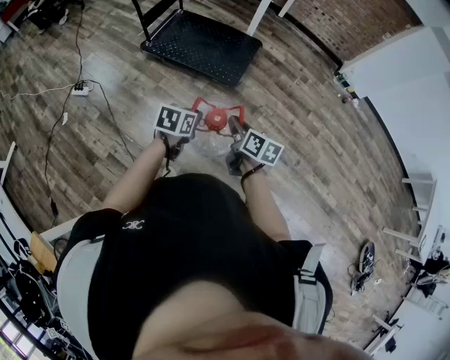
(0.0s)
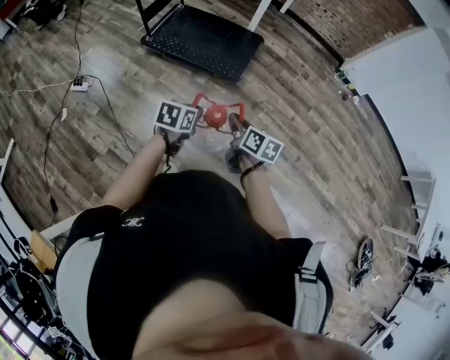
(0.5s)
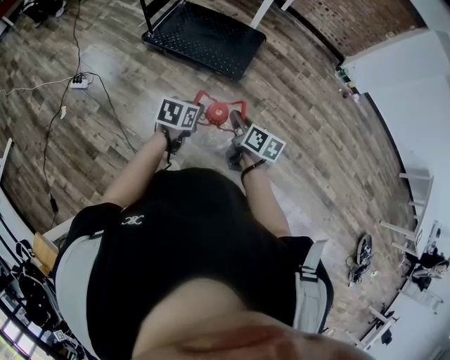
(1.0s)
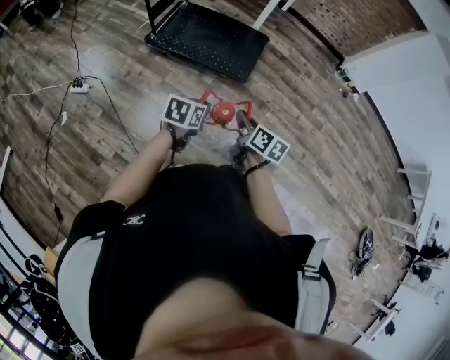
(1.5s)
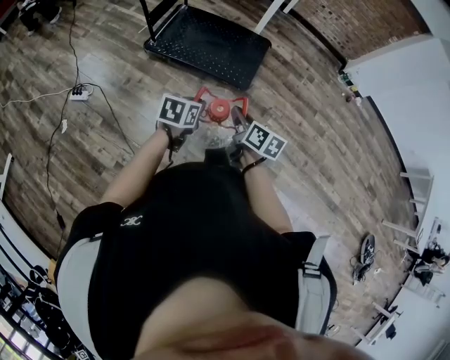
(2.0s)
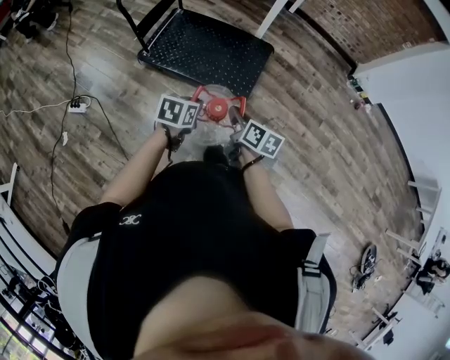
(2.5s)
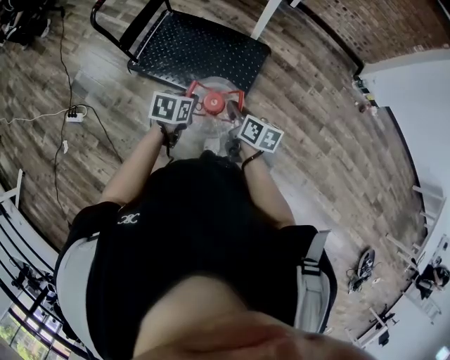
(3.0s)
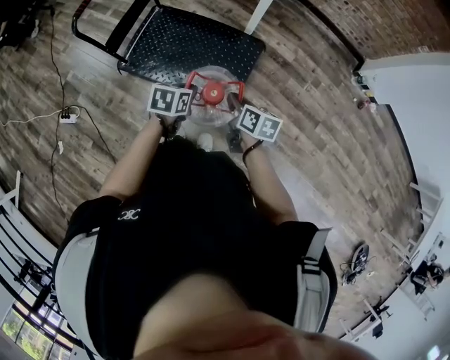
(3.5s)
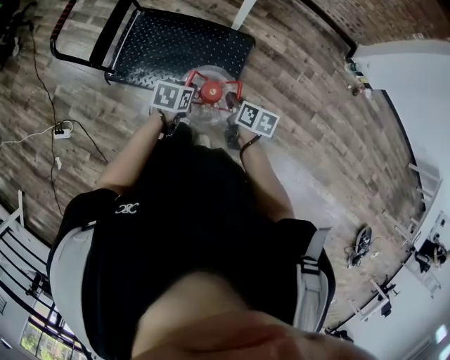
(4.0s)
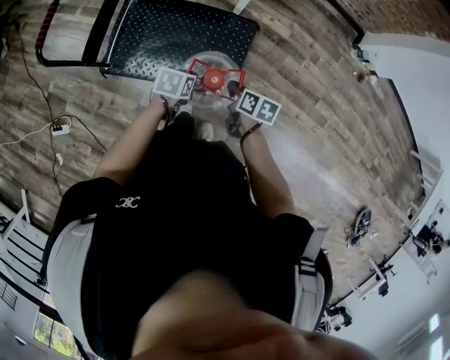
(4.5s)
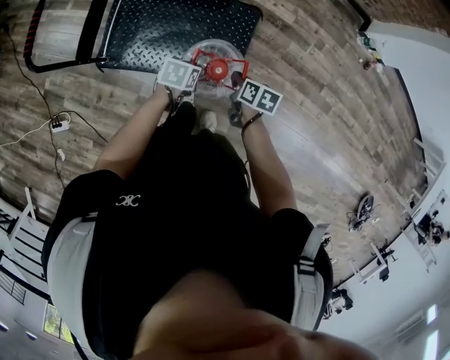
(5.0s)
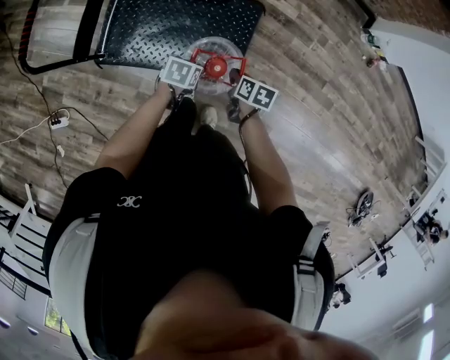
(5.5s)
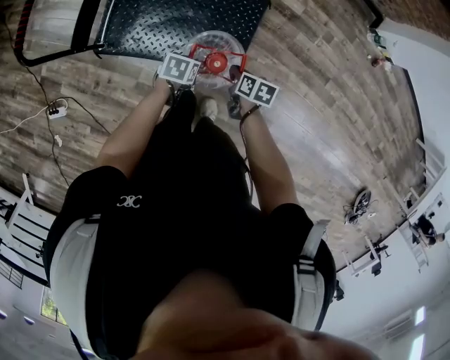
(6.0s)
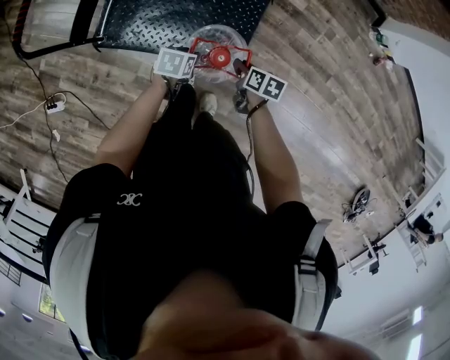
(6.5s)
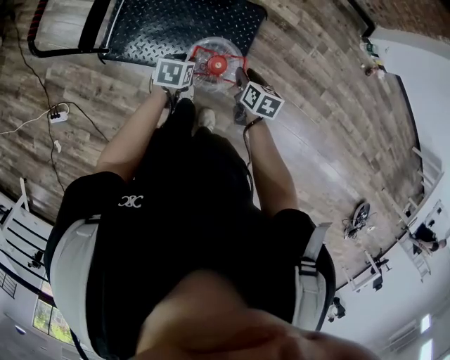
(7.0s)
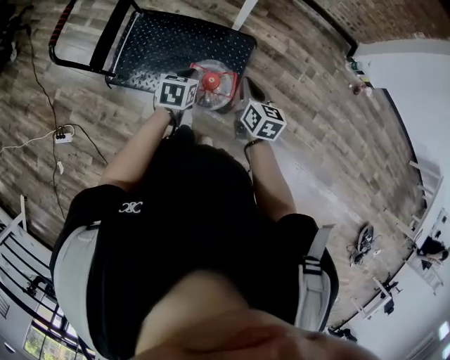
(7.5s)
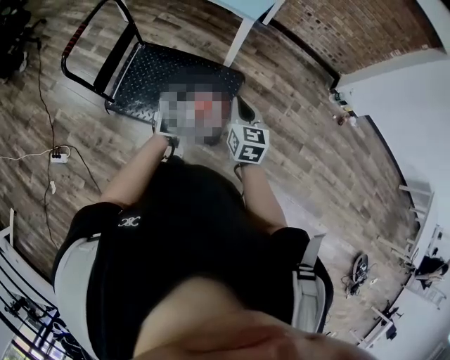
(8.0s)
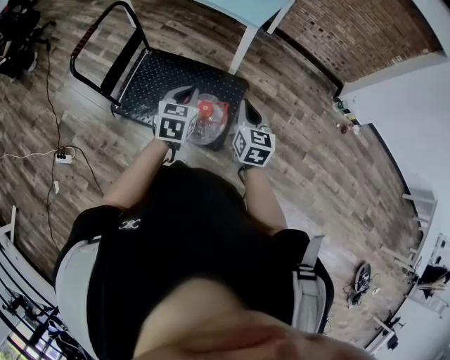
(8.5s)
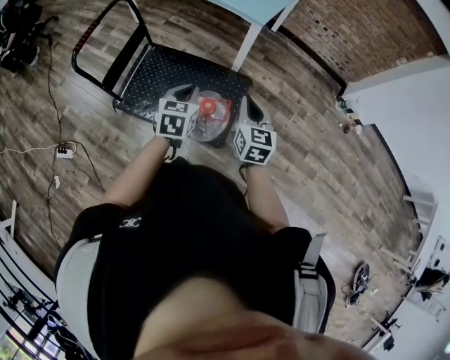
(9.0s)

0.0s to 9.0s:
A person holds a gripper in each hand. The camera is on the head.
0.0s to 2.0s: Both grippers travel together to the left and forward, some 15 cm.
2.0s to 4.5s: The pair of grippers is taken forward, some 50 cm. The left gripper rotates approximately 20 degrees. Meanwhile the right gripper turns by approximately 20 degrees.
4.5s to 7.0s: The right gripper goes downward and returns, about 10 cm each way, and opens up.
7.0s to 9.0s: The two grippers go approximately 25 cm upward. The left gripper changes its angle by approximately 40 degrees, and closes its fingers; the right gripper tips its fingers upward by approximately 30 degrees, and closes up.

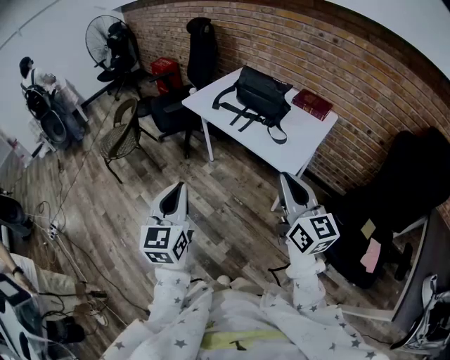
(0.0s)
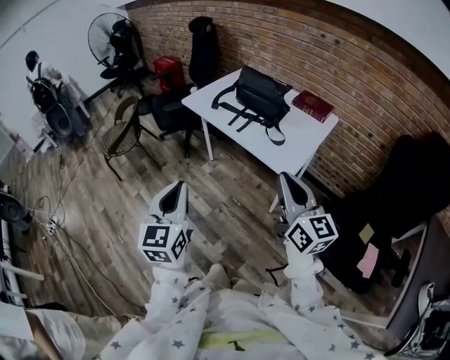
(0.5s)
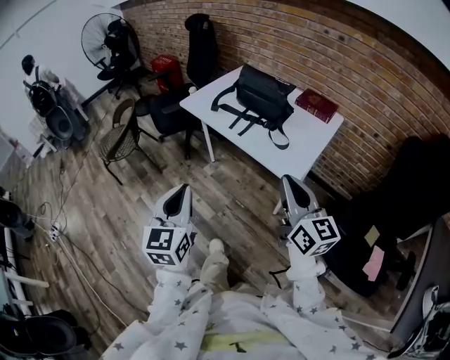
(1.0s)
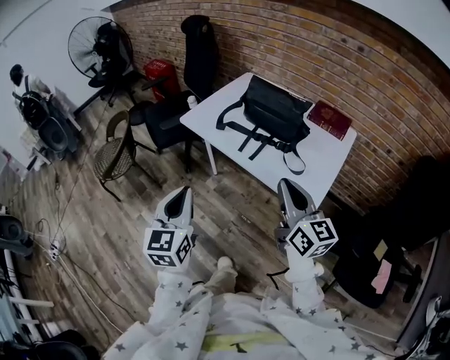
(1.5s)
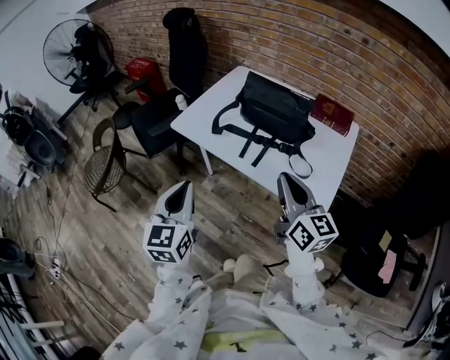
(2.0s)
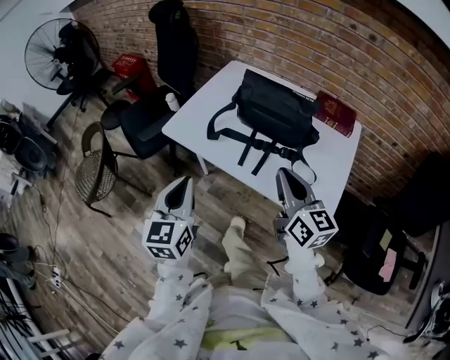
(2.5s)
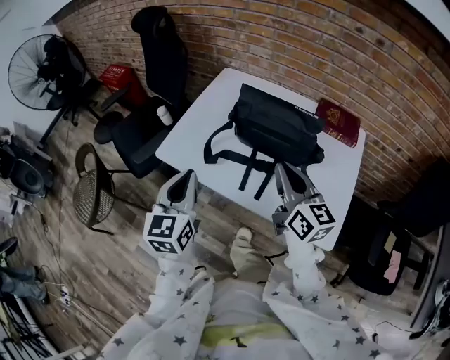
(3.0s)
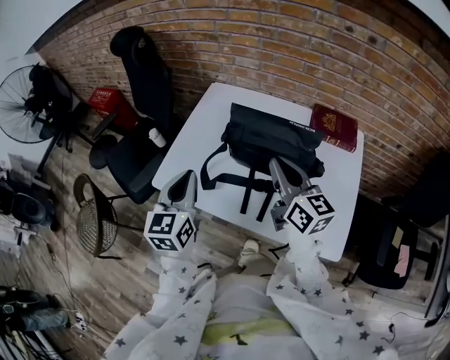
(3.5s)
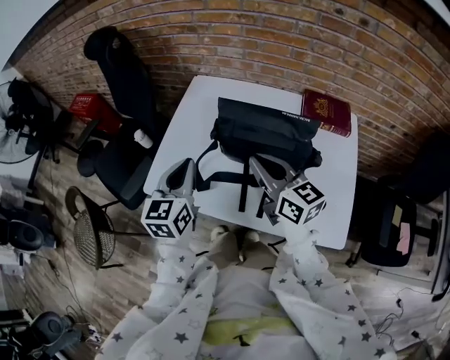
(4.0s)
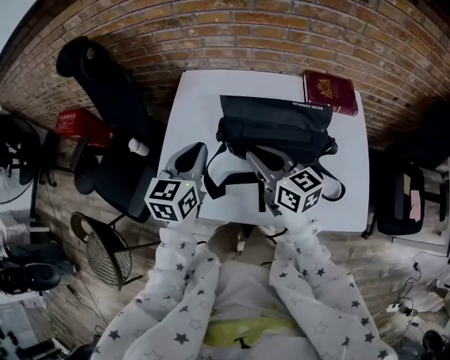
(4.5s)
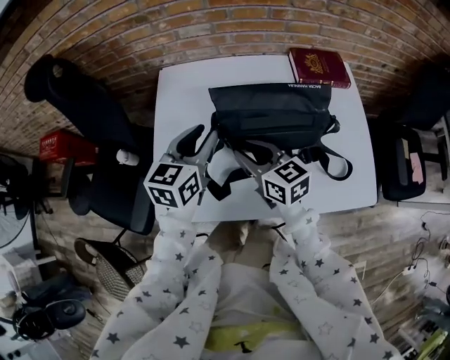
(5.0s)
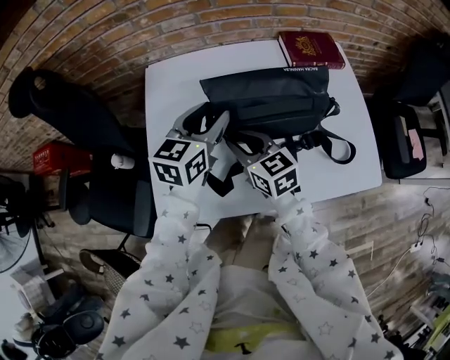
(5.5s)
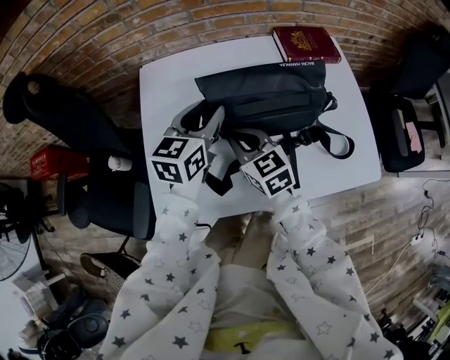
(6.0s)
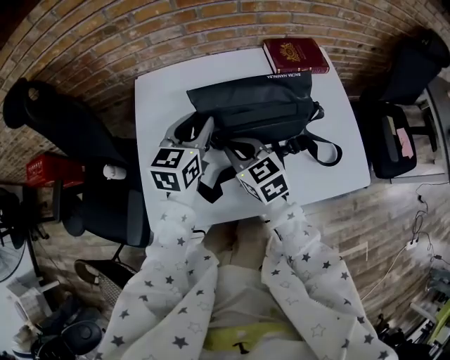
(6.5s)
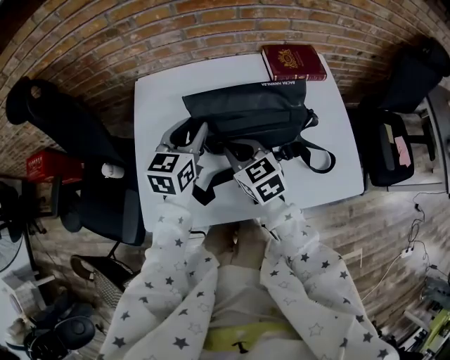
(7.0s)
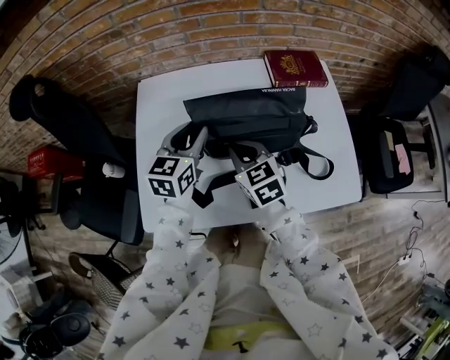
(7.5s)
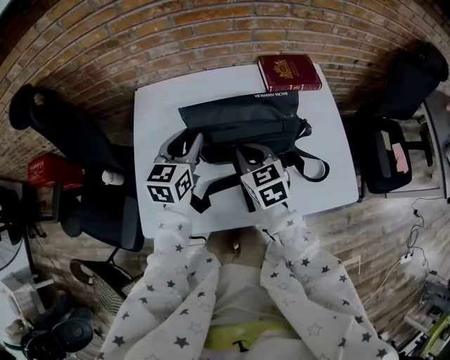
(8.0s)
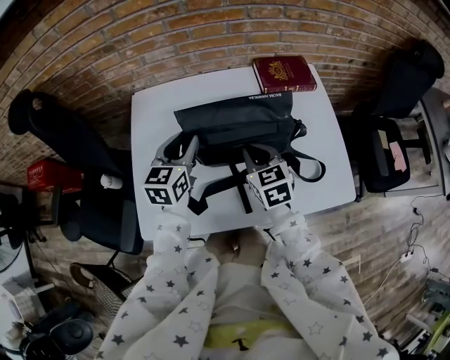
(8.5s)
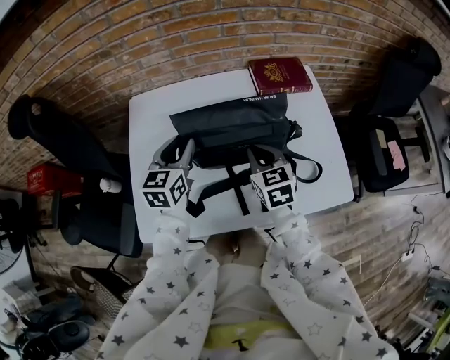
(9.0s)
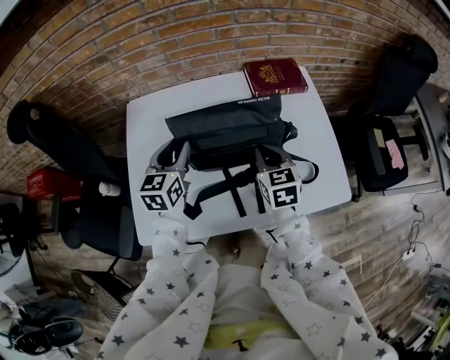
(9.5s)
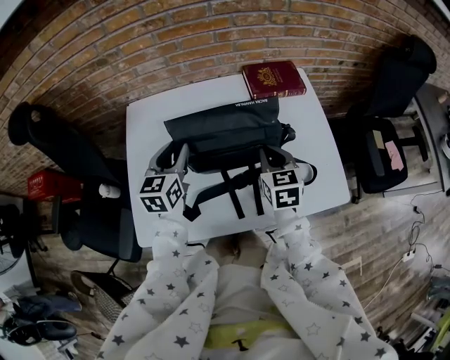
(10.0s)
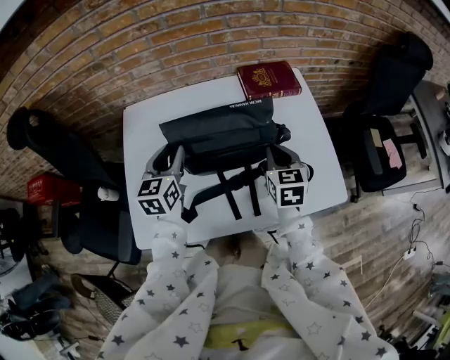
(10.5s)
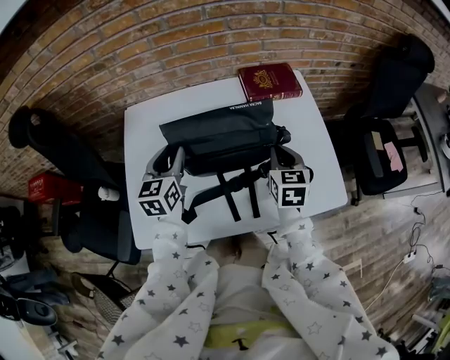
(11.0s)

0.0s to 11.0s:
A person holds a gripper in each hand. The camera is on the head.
0.0s to 2.0s: The two grippers go roughly 30 cm forward.
2.0s to 3.5s: Both grippers travel together forward, roughly 30 cm.
3.5s to 5.5s: The left gripper moves approximately 20 cm, swivels roughly 50 degrees, and opens; the right gripper is displaced downward by some 15 cm, changes its angle by approximately 30 degrees, and opens its fingers.
5.5s to 7.5s: The right gripper shifts some 5 cm to the right, and closes.
7.5s to 9.0s: The right gripper moves to the right, roughly 10 cm.
9.0s to 11.0s: The right gripper shifts roughly 10 cm to the right.

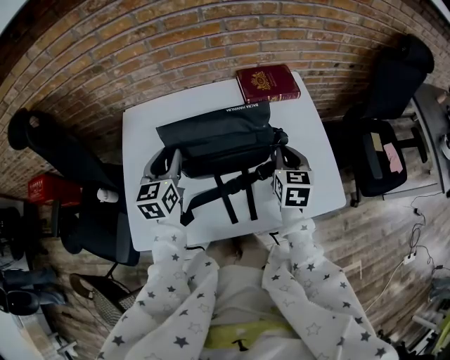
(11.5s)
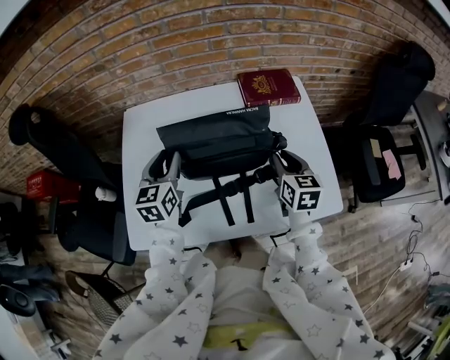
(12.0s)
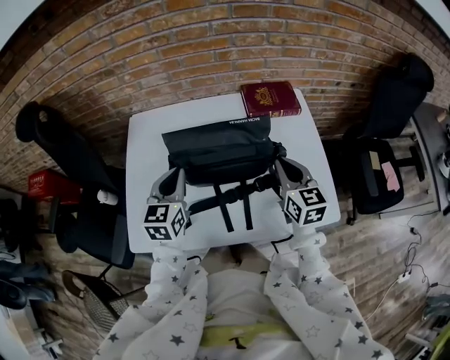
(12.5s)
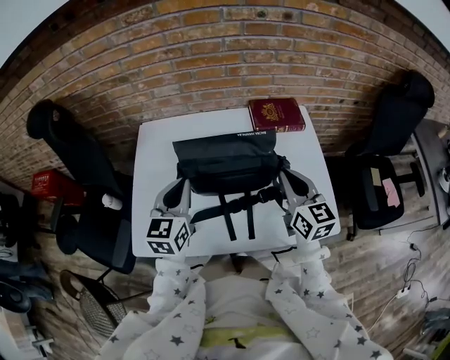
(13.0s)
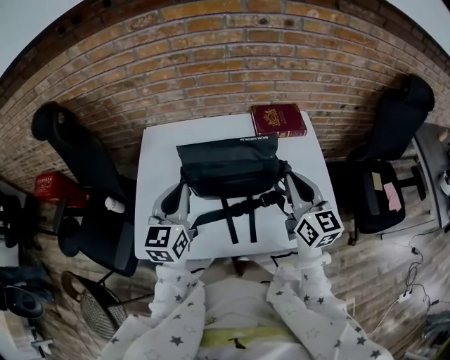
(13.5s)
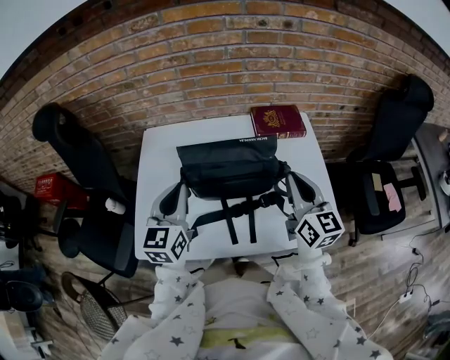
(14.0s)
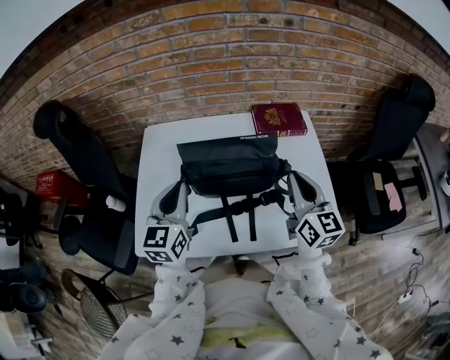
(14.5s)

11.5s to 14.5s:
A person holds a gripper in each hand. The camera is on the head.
11.5s to 13.0s: The left gripper is displaced backward and upward by about 10 cm, and closes up; the right gripper is displaced upward by some 10 cm, and changes its angle by approximately 30 degrees.
13.0s to 14.5s: The grippers move only a little.

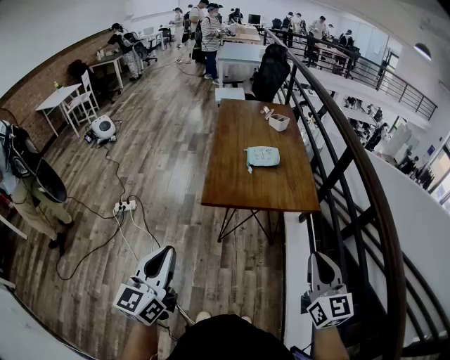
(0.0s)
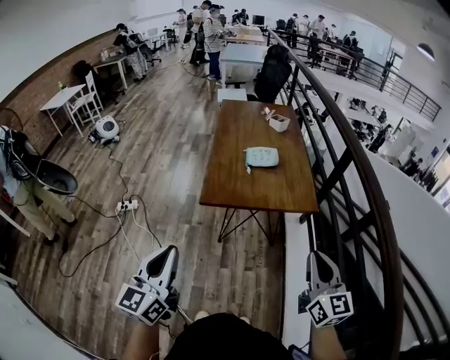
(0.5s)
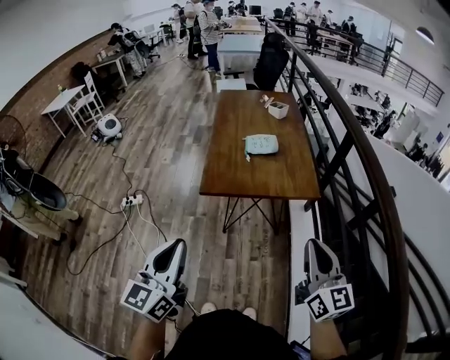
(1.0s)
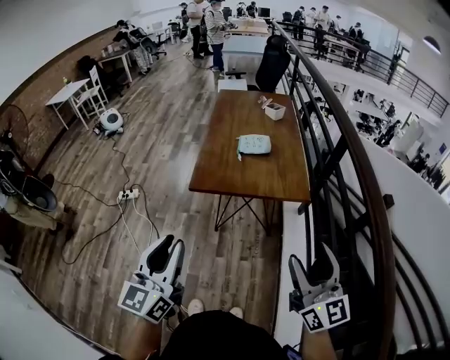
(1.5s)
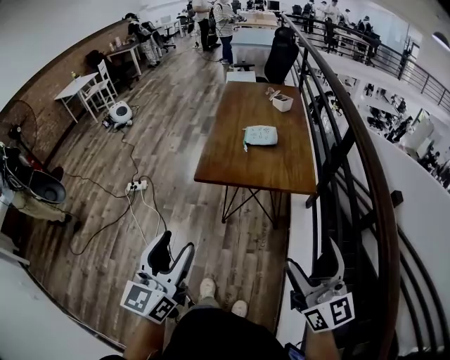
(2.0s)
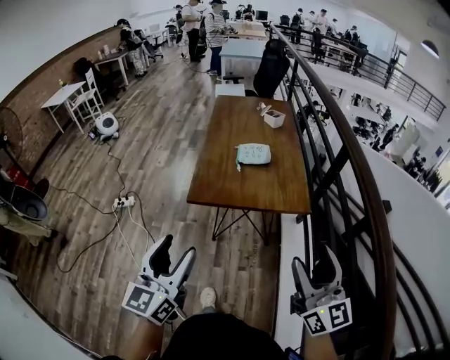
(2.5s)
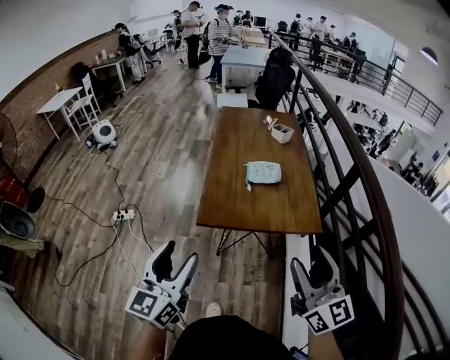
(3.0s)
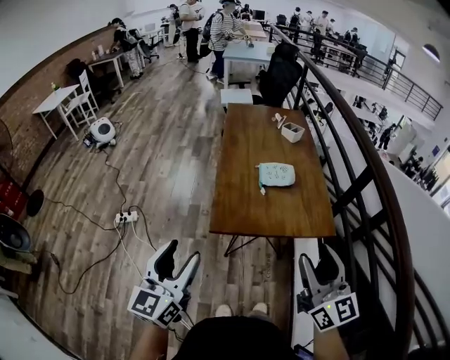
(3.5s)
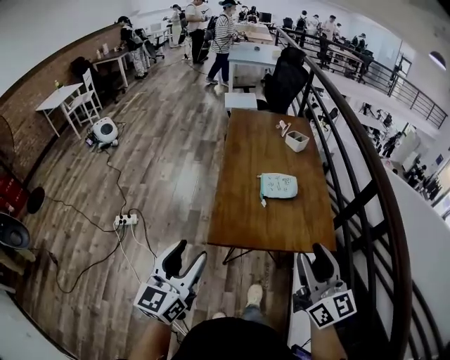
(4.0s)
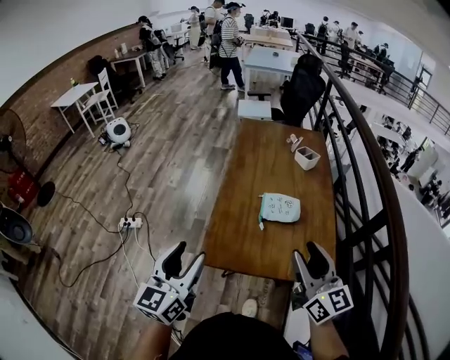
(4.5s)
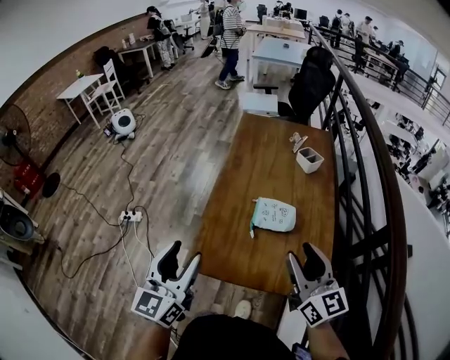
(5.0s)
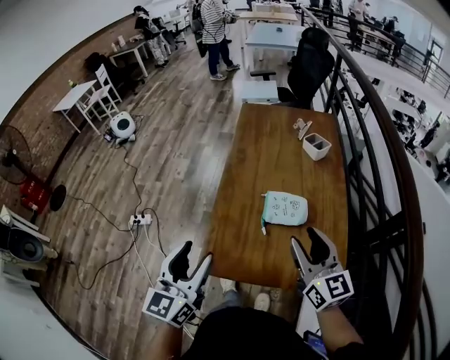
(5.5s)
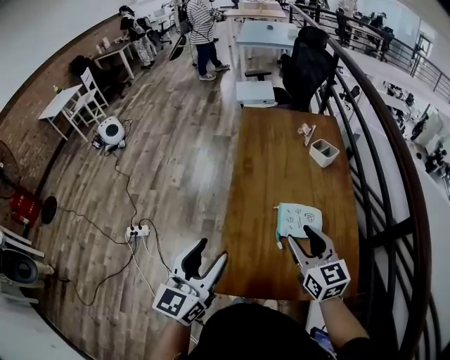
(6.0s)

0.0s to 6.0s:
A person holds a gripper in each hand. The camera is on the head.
0.0s to 2.0s: The left gripper moves to the right, some 15 cm, and opens, while the right gripper shifts roughly 5 cm to the right, swivels roughly 20 degrees, and opens.
2.0s to 4.0s: Both grippers travel together forward and to the left, roughly 30 cm. The right gripper closes its fingers.
4.0s to 6.0s: Both grippers travel together forward, approximately 25 cm. The right gripper rotates approximately 20 degrees.
